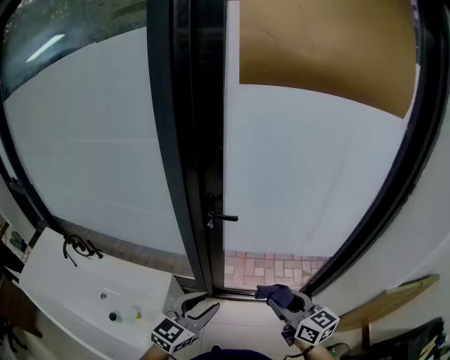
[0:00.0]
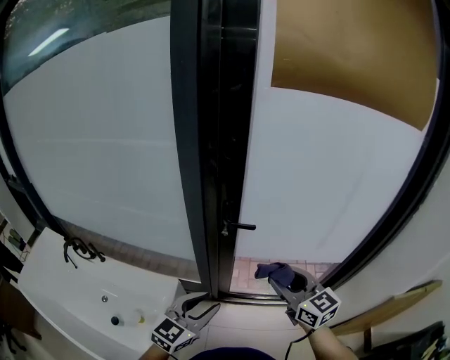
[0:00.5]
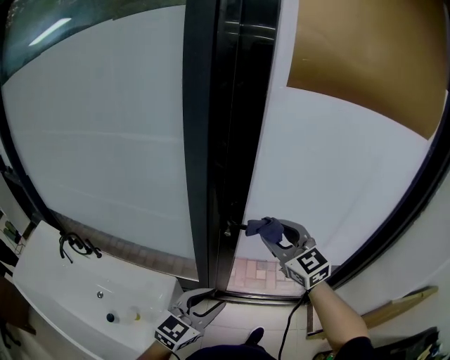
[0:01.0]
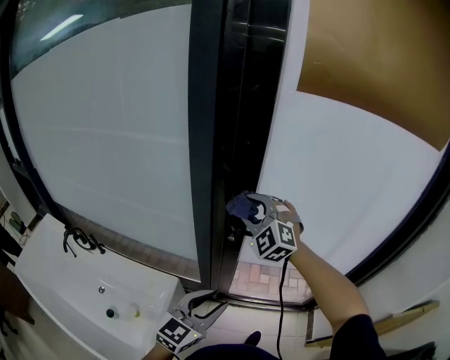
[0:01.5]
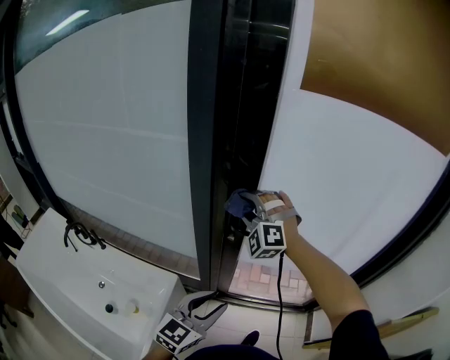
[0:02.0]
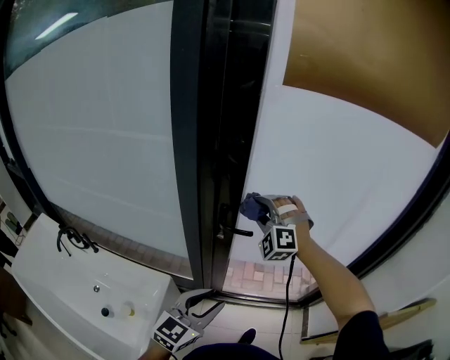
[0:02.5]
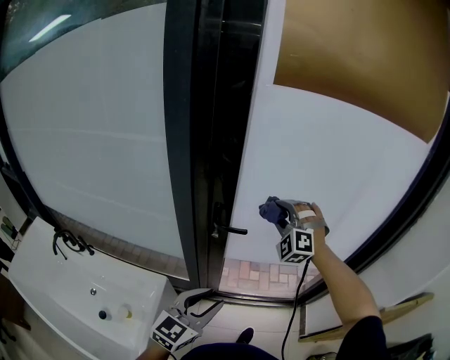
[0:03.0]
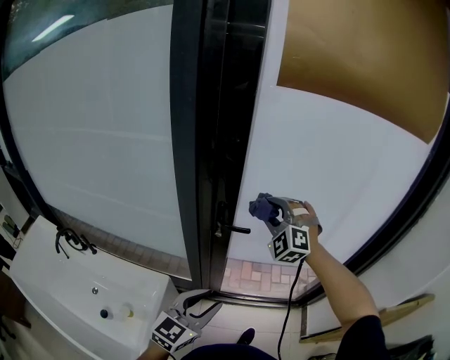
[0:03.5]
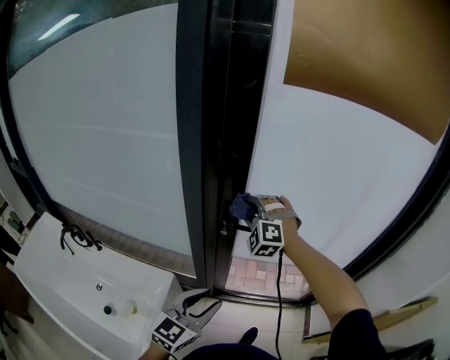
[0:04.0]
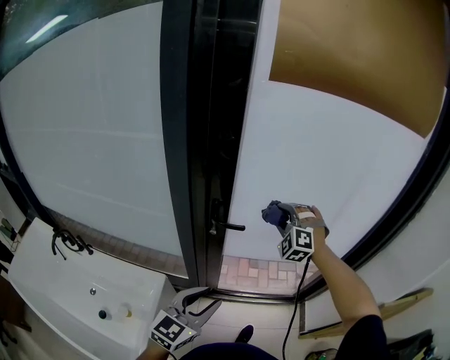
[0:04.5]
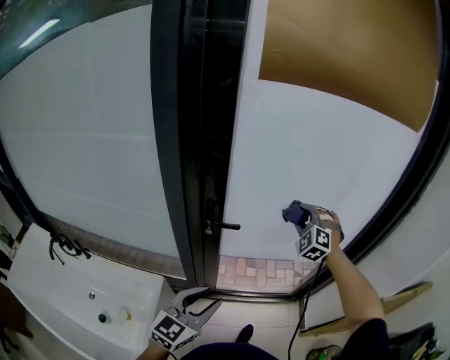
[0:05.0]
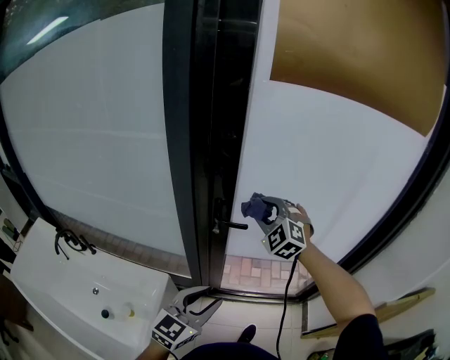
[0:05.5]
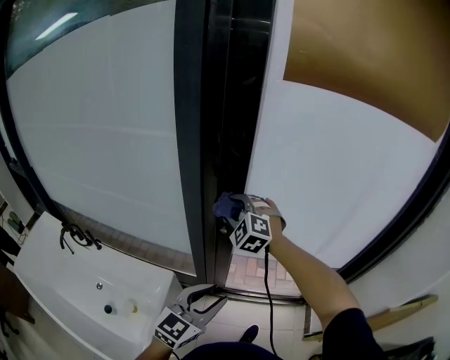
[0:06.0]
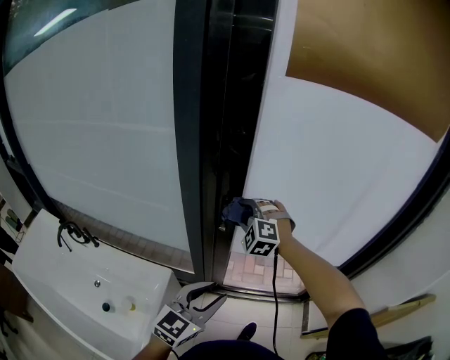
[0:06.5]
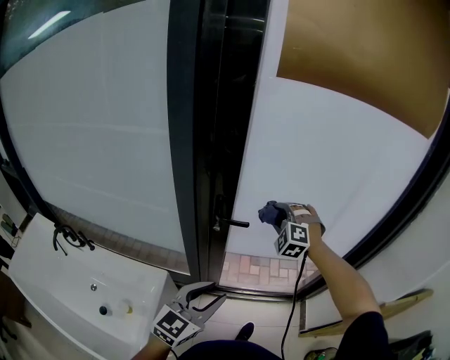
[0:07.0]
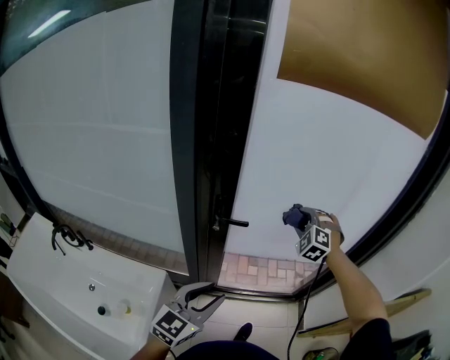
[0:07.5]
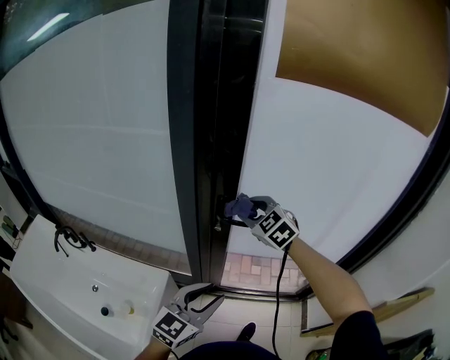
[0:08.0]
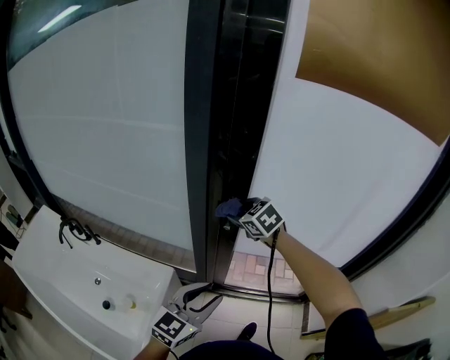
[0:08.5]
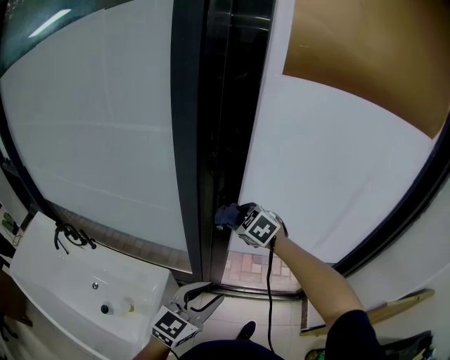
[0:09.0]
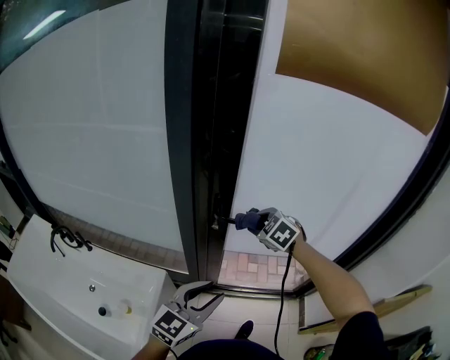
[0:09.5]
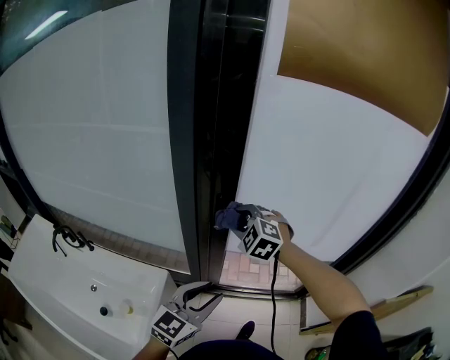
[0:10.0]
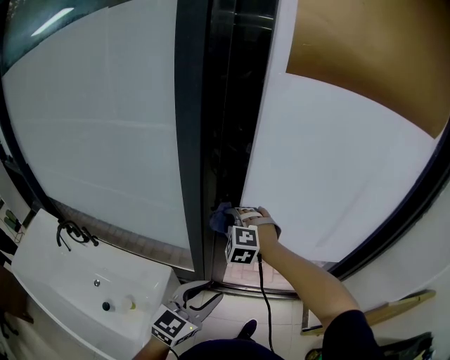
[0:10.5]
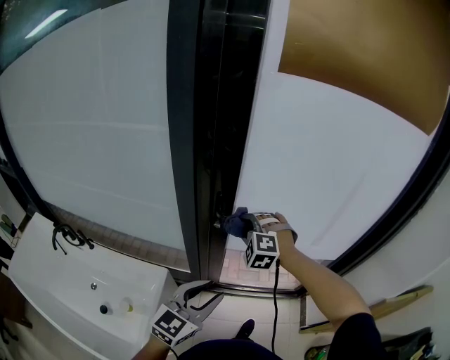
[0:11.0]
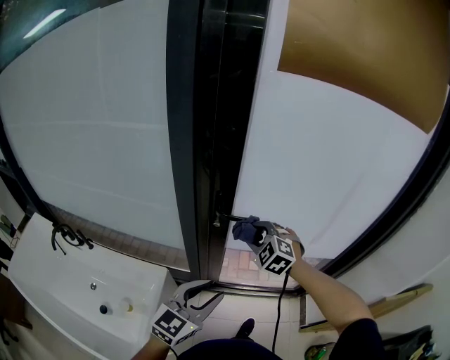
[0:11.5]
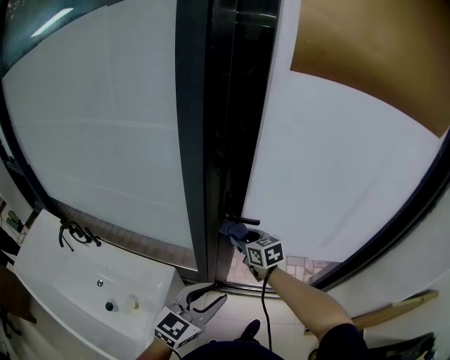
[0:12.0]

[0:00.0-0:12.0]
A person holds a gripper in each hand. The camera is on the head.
0:00.0 to 0:02.0: The right gripper goes roughly 40 cm forward and to the left, and rolls counterclockwise, seen from behind, by roughly 90 degrees, while the left gripper is displaced forward by roughly 10 cm.
0:02.0 to 0:04.0: The right gripper reaches approximately 15 cm to the right, then returns.
0:04.0 to 0:06.0: The right gripper travels to the right and back again, roughly 25 cm each way.
0:06.0 to 0:08.0: The right gripper goes to the right and returns, approximately 25 cm each way, and turns by some 30 degrees.
0:08.0 to 0:10.0: The right gripper swings left and right, roughly 10 cm each way, with 2 reversals.
0:10.0 to 0:12.0: The right gripper goes left and right, some 10 cm each way, reversing 2 times, and rotates around the line of its fingers by about 60 degrees, clockwise from behind.

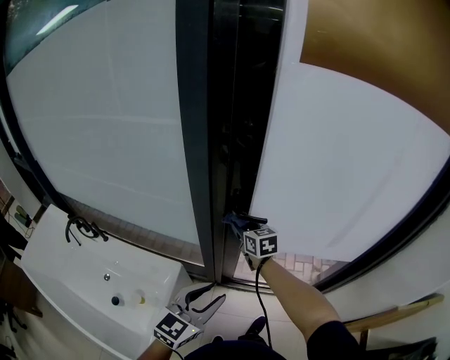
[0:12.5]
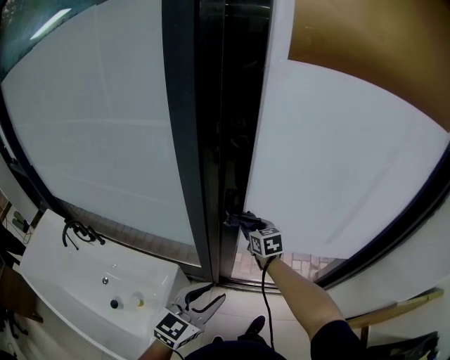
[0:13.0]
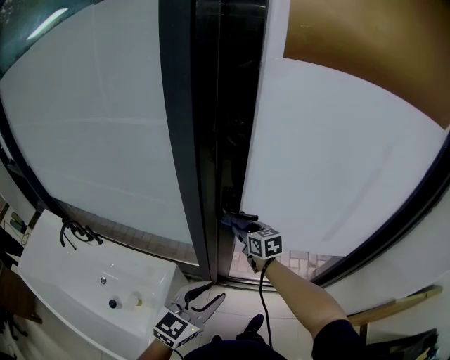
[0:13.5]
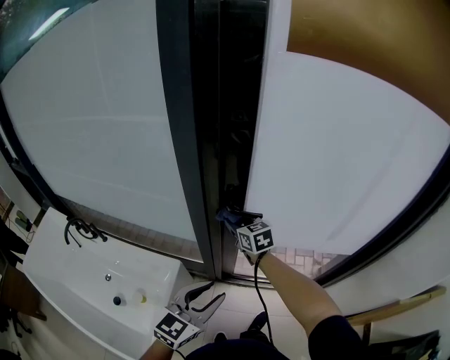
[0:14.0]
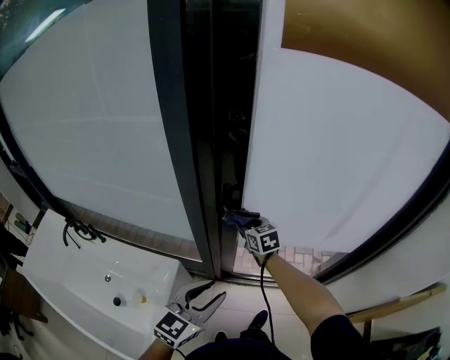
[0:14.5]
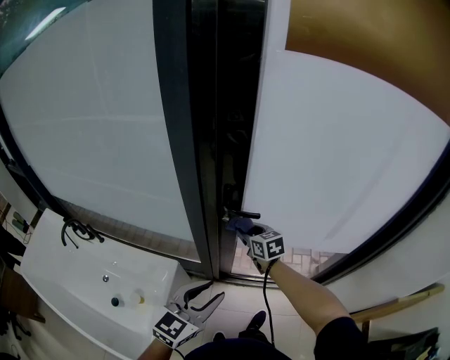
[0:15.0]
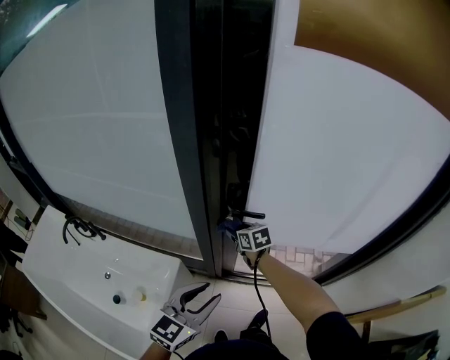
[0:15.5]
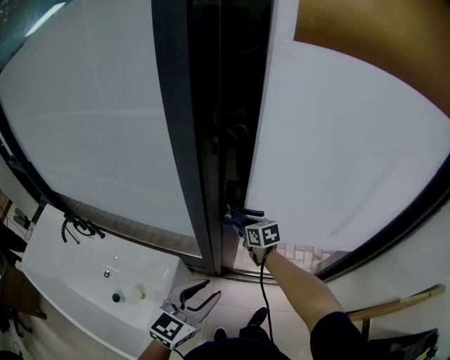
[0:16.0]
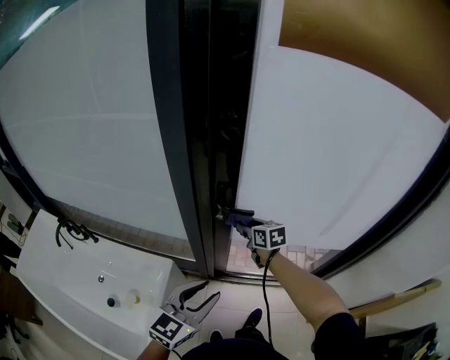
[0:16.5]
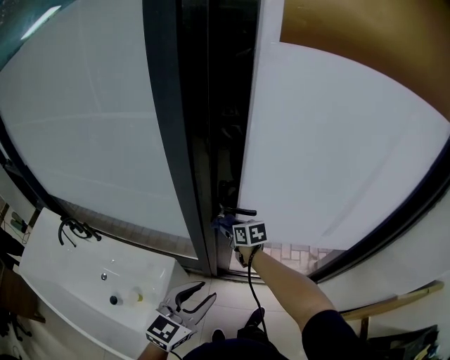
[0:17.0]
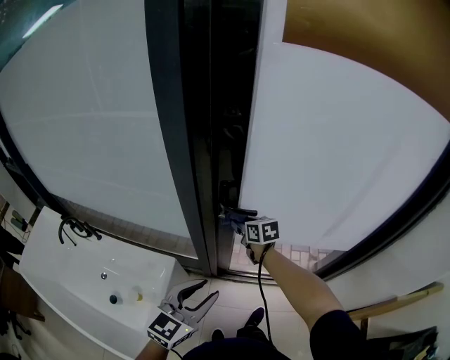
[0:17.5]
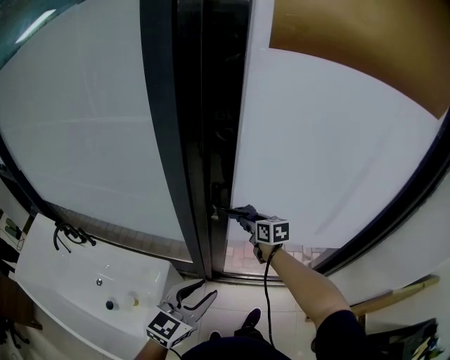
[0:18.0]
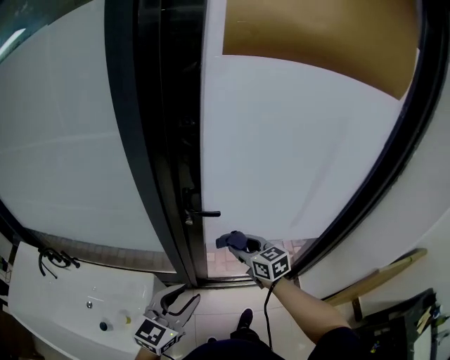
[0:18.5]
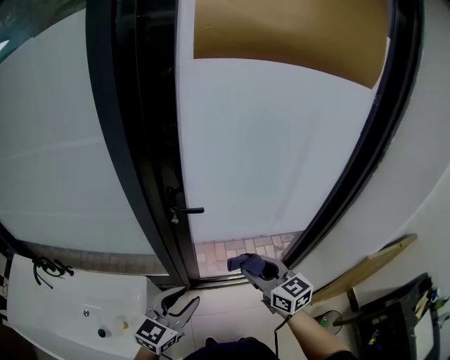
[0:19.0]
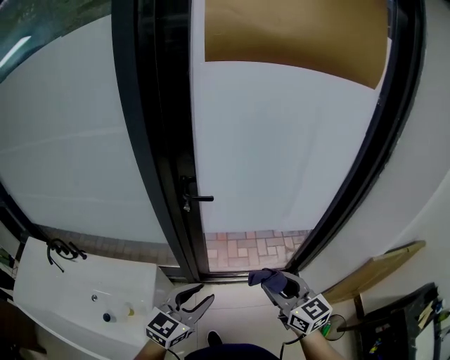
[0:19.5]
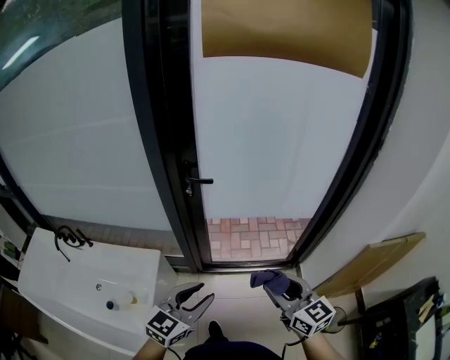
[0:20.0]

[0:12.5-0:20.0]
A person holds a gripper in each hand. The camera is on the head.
0:12.5 to 0:14.5: The right gripper swings left and right, about 5 cm each way, with 2 reversals.
0:16.5 to 0:18.0: The right gripper reaches approximately 5 cm to the left, then returns.
0:18.0 to 0:20.0: The left gripper goes about 20 cm backward and to the right; the right gripper goes about 50 cm backward and to the right, and rotates roughly 20 degrees.

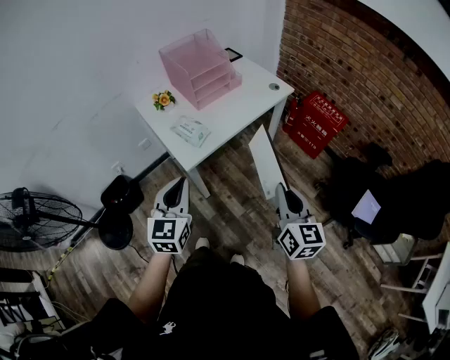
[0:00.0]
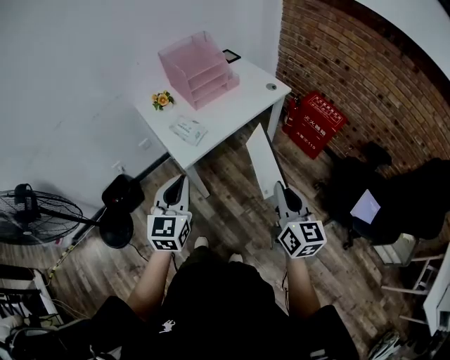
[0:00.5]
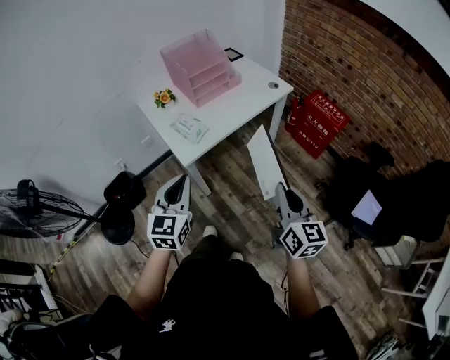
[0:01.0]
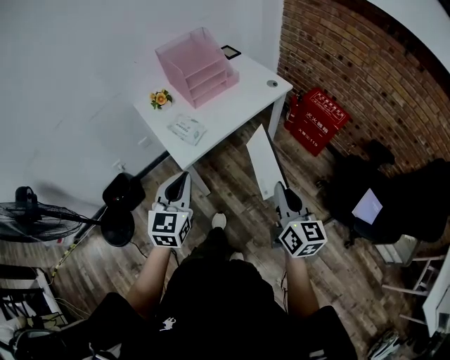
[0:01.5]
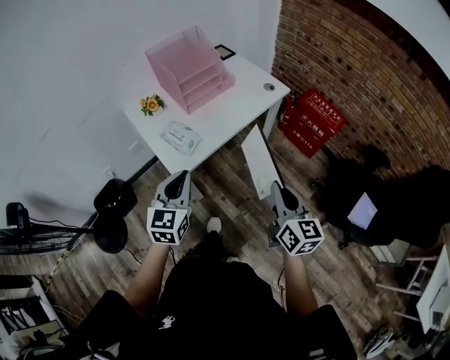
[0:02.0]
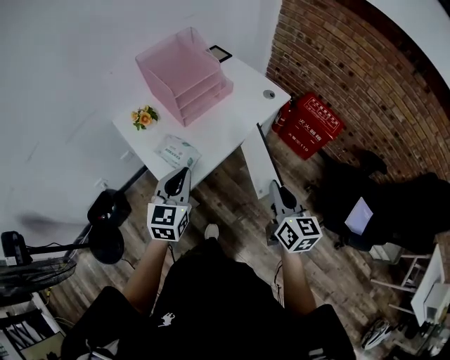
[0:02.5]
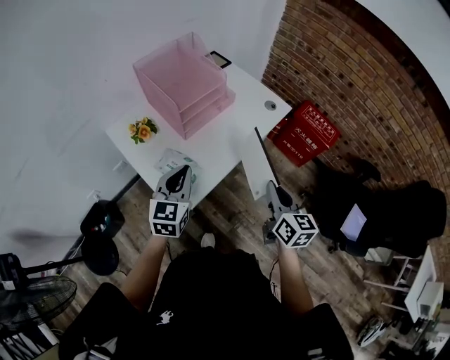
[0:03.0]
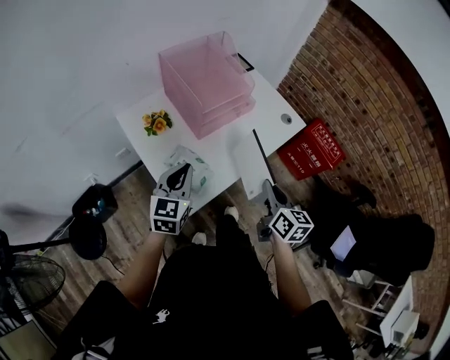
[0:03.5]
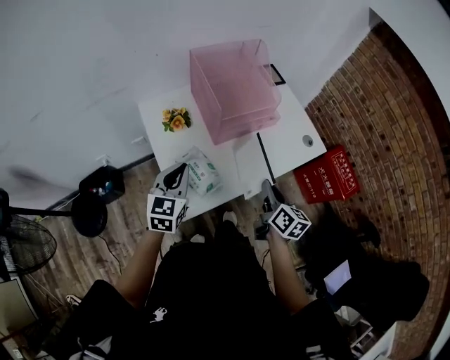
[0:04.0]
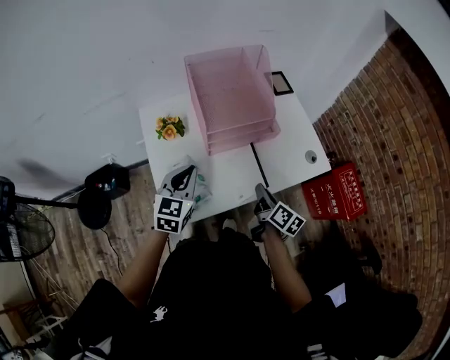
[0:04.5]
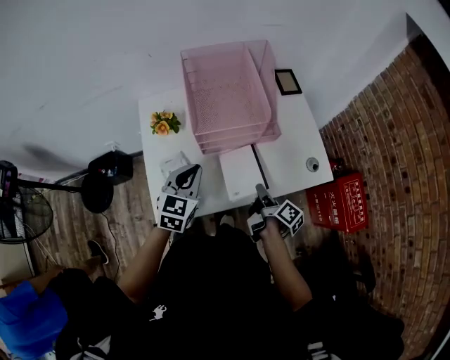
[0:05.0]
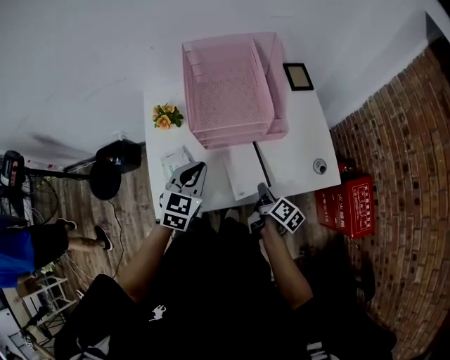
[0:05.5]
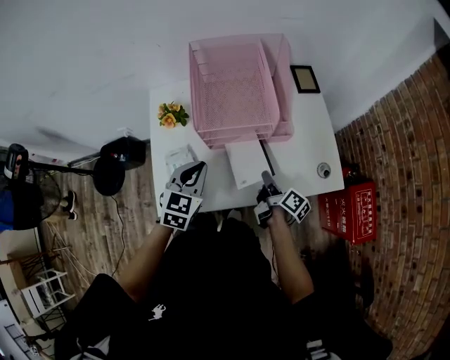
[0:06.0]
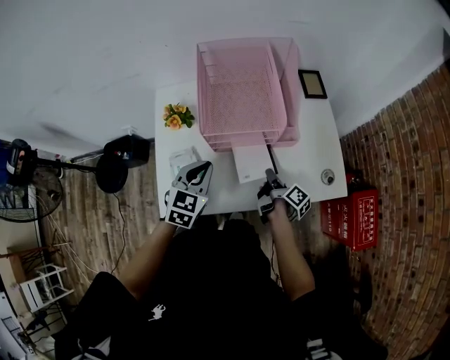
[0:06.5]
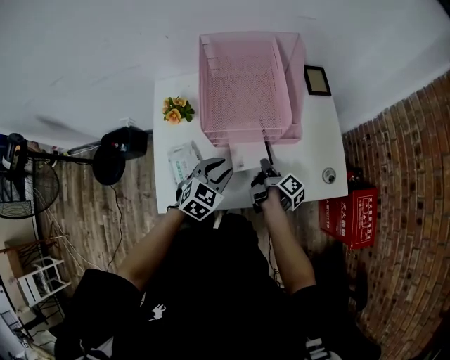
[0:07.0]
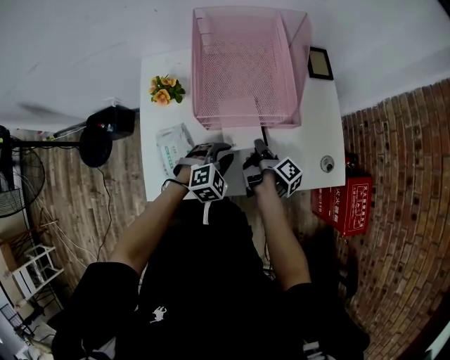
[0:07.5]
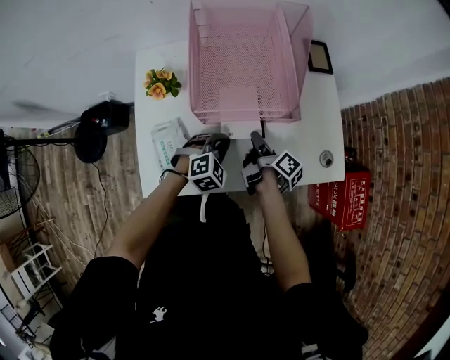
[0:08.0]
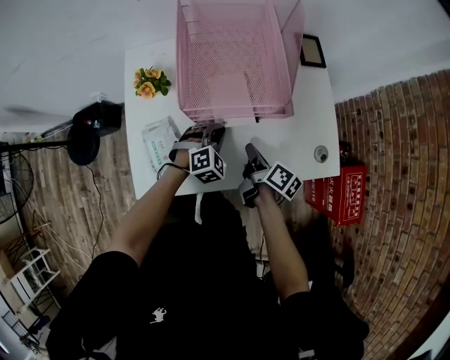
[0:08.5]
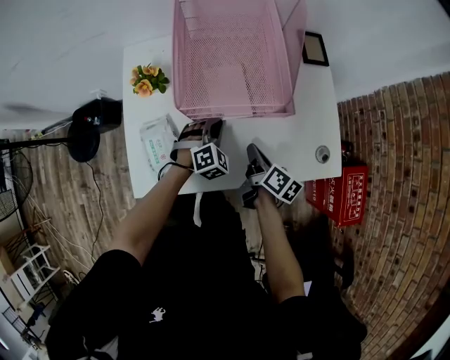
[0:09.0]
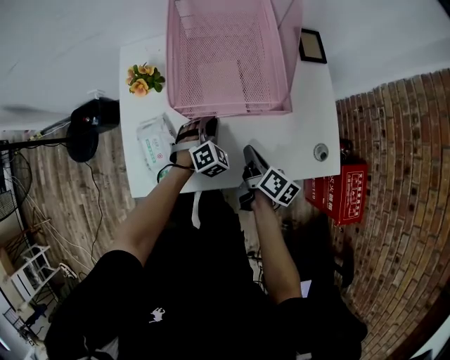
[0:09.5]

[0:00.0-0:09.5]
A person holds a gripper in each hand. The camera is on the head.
0:00.0 to 0:02.0: Both grippers travel together forward, about 10 cm.
0:02.0 to 0:04.0: The grippers both shift forward and to the left by approximately 30 cm. The right gripper swivels about 20 degrees.
0:04.0 to 0:05.5: The right gripper moves downward, forward and to the right, roughly 20 cm, and rotates some 40 degrees. Meanwhile the left gripper heads to the right and forward, covering roughly 15 cm.
0:05.5 to 0:07.5: The left gripper heads downward and to the right, covering roughly 15 cm, swivels about 40 degrees, and opens, while the right gripper shifts roughly 10 cm forward, and changes its angle by roughly 20 degrees.
0:07.5 to 0:09.5: The right gripper is displaced backward by some 5 cm, and turns by some 40 degrees; the left gripper is displaced forward by some 10 cm, and changes its angle by roughly 20 degrees.
